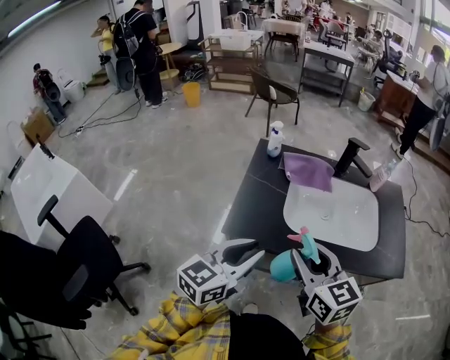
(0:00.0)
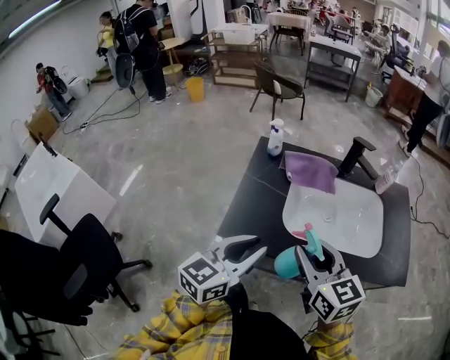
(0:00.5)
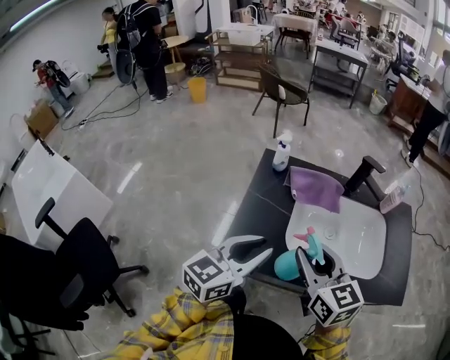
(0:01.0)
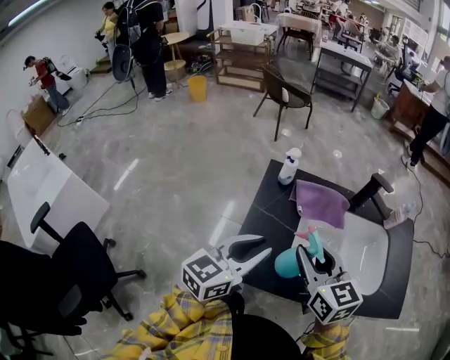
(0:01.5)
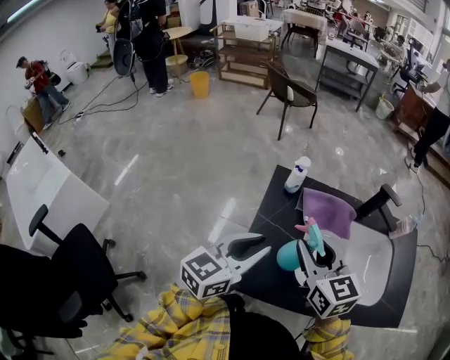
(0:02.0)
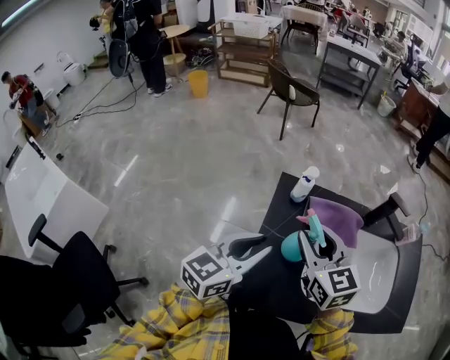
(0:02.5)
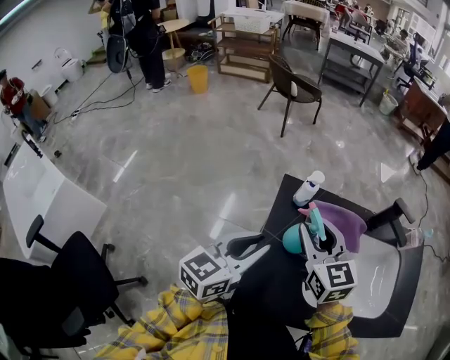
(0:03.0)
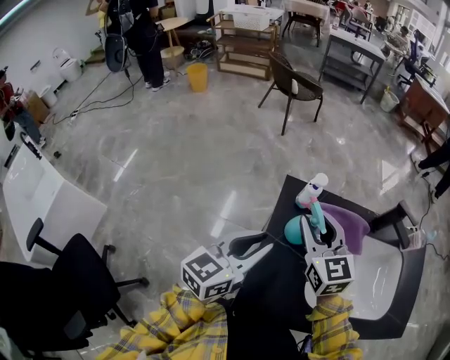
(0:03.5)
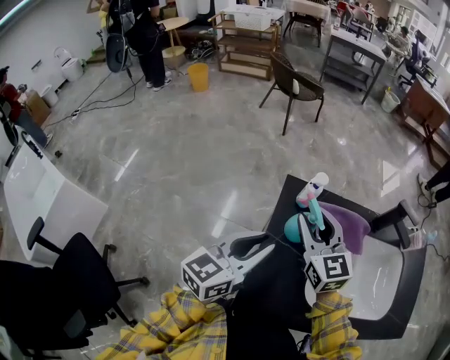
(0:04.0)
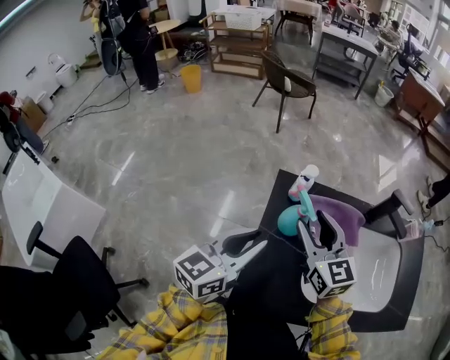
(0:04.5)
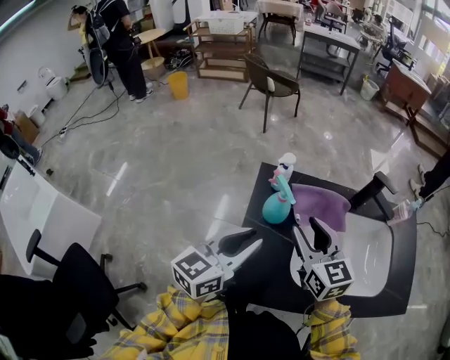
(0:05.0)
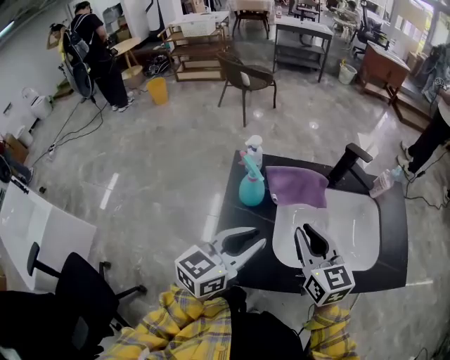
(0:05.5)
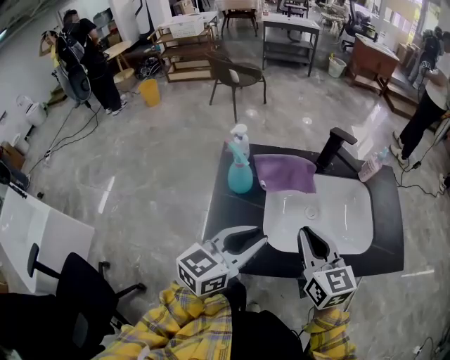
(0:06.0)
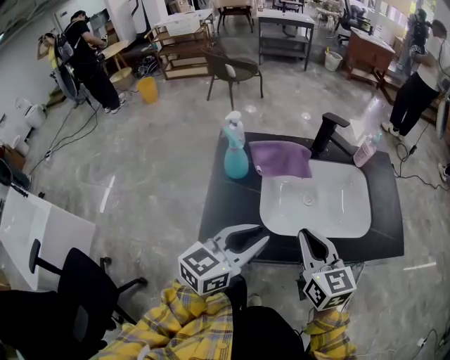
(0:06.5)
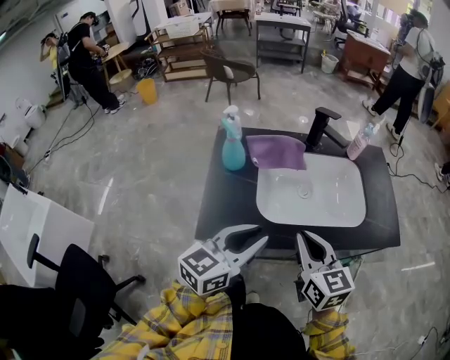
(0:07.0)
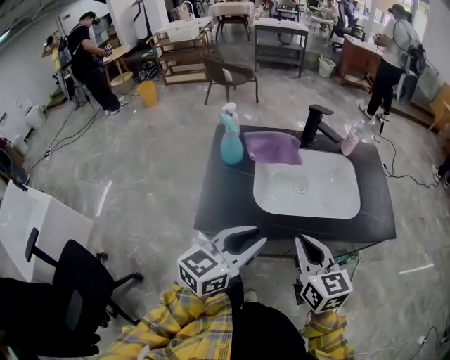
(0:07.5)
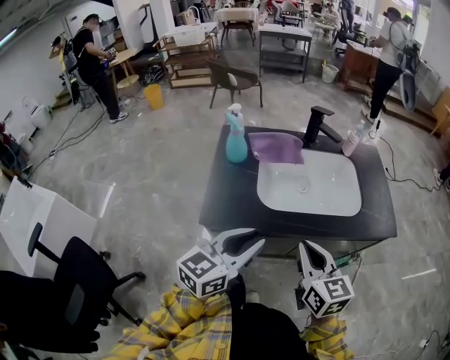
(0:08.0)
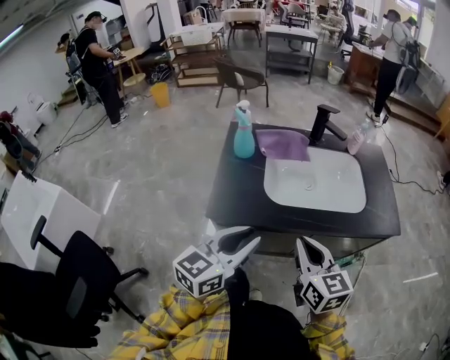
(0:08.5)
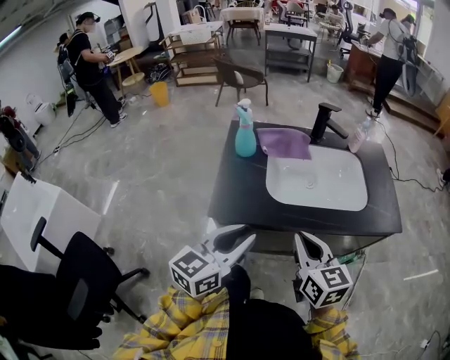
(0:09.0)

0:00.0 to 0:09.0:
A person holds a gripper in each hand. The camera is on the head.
0:00.0 to 0:02.0: The grippers both shift forward and to the left by about 25 cm.
0:02.0 to 0:04.5: The left gripper shifts roughly 10 cm forward and to the left; the right gripper travels forward by about 10 cm.
0:04.5 to 0:07.0: The left gripper heads to the right and backward, covering approximately 30 cm; the right gripper is displaced backward and to the right by roughly 35 cm, and closes up.
0:07.0 to 0:09.0: The grippers both shift backward by some 10 cm.

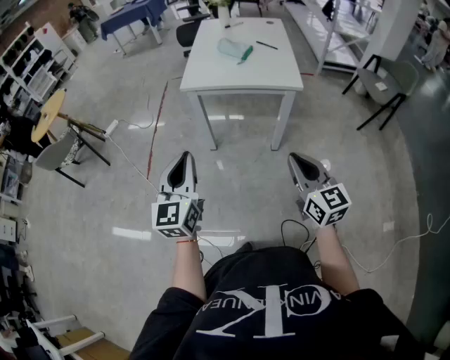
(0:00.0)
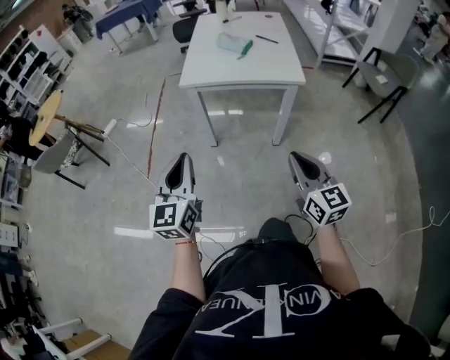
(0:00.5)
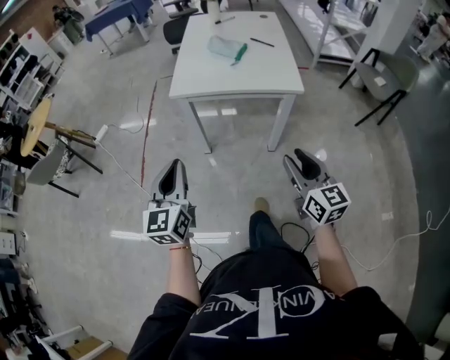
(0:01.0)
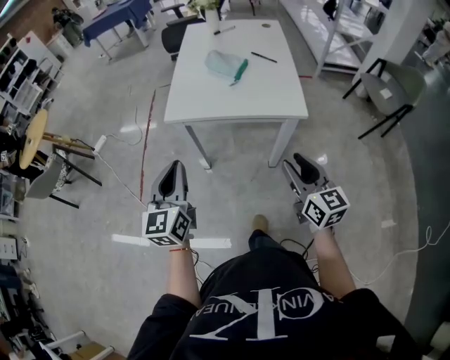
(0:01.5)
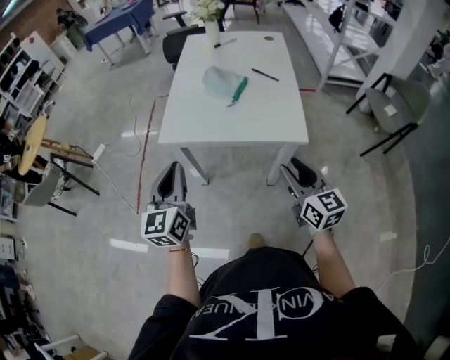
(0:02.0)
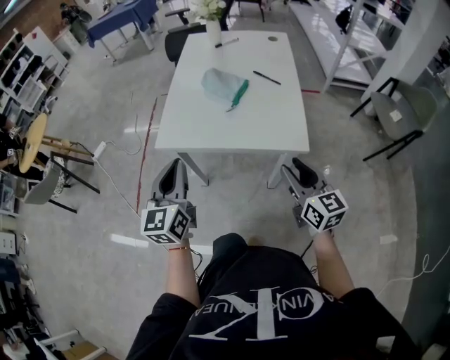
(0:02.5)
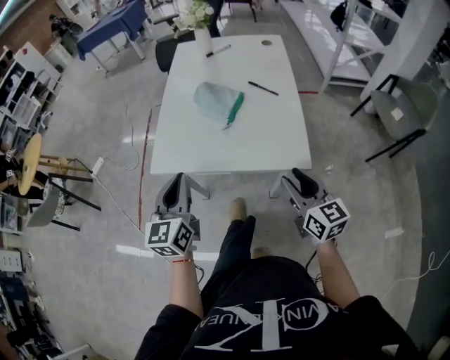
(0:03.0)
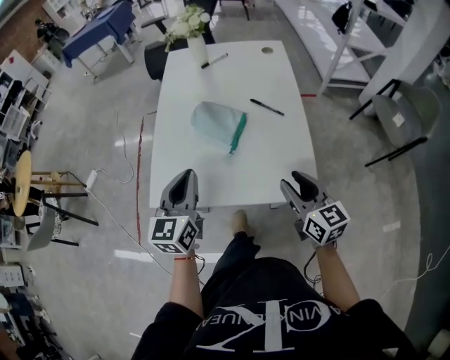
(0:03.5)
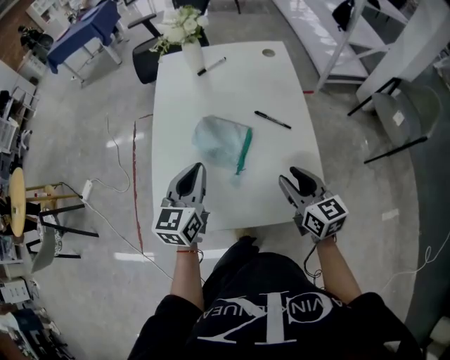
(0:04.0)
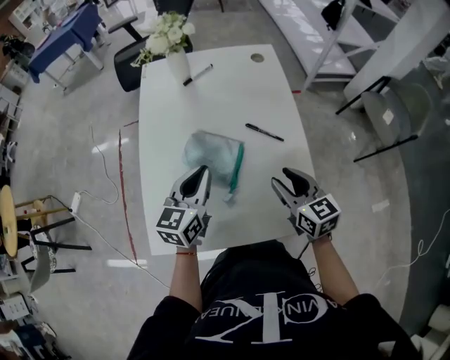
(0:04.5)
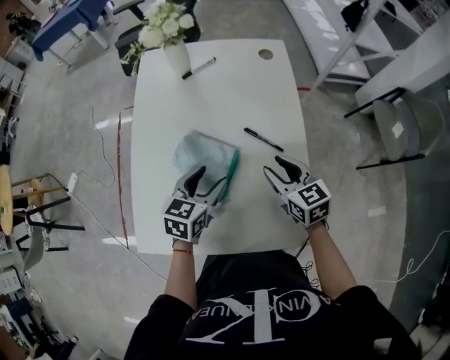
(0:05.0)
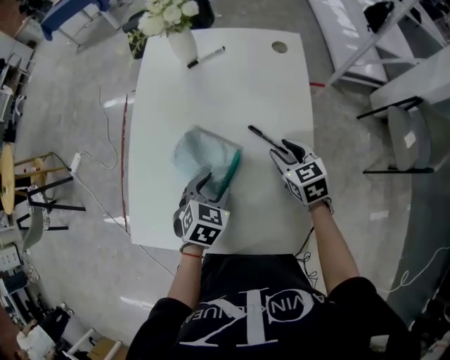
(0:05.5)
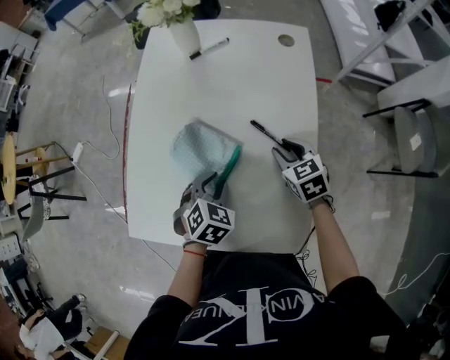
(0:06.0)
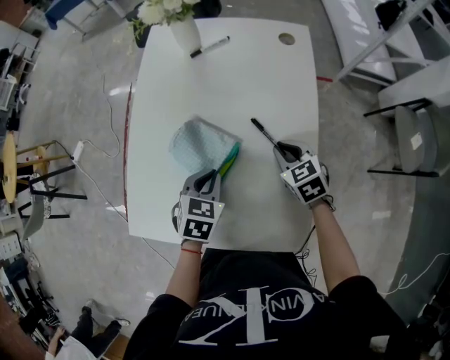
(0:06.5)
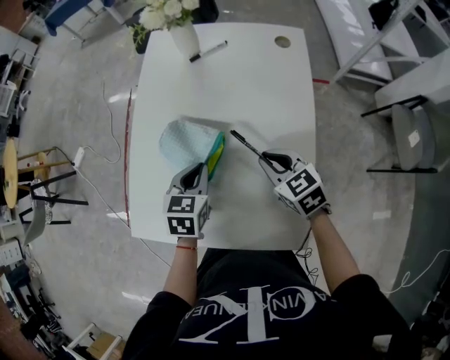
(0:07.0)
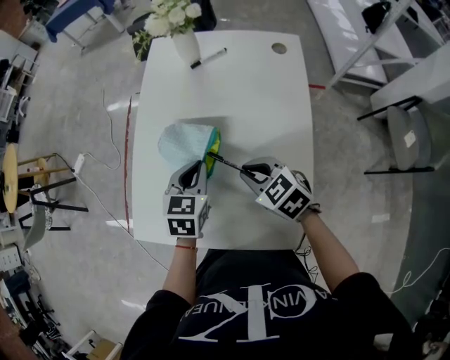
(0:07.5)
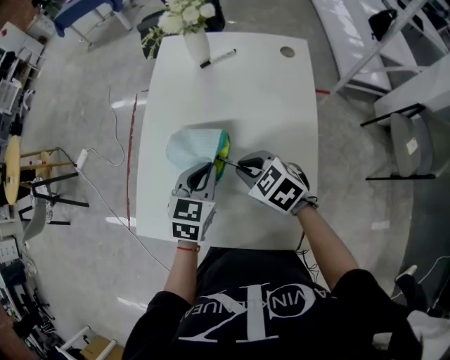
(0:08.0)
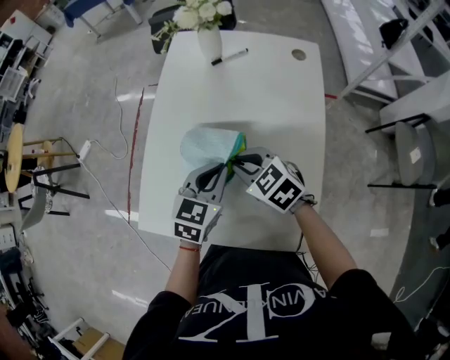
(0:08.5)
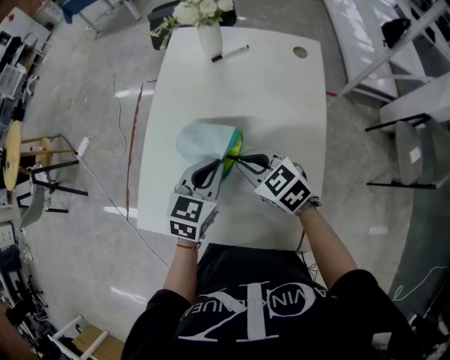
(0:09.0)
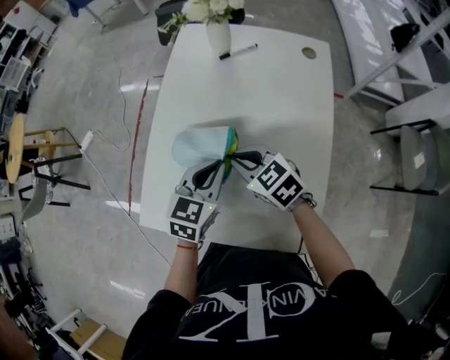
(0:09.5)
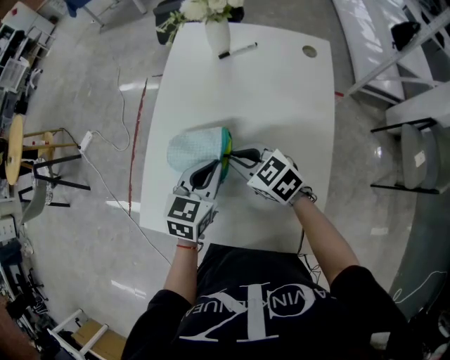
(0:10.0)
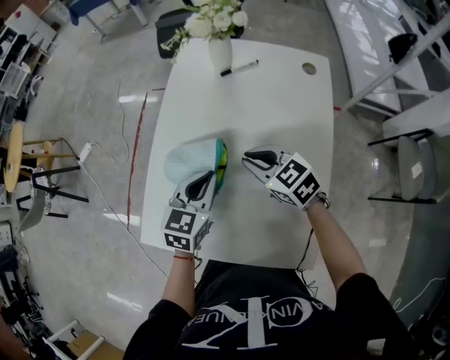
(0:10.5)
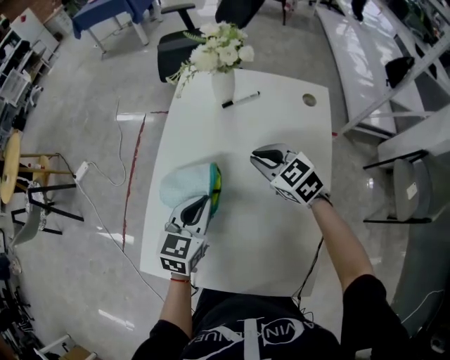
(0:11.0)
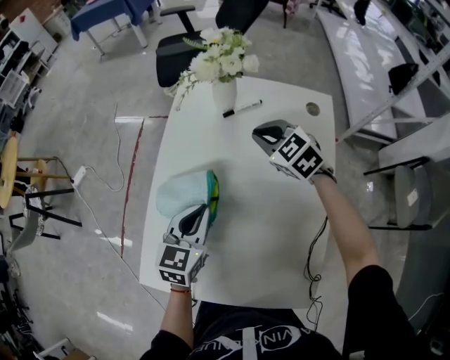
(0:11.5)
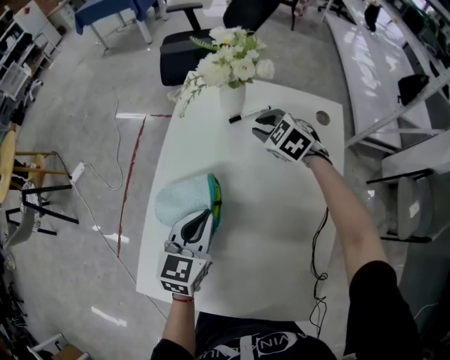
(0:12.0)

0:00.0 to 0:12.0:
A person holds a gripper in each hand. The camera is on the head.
0:00.0 to 0:02.0: Both grippers move forward, approximately 30 cm. The right gripper opens.
0:02.0 to 0:04.0: Both grippers move forward, approximately 30 cm. The left gripper swivels approximately 20 degrees.
0:04.0 to 0:06.0: The left gripper is displaced downward and to the right by roughly 20 cm, tips its fingers downward by about 50 degrees, and opens up; the right gripper goes approximately 20 cm forward and downward, and changes its angle by roughly 40 degrees.
0:06.0 to 0:08.0: The right gripper goes roughly 15 cm to the left and upward, swivels approximately 30 degrees, and closes. The left gripper is displaced upward by approximately 10 cm, turns by roughly 30 degrees, and closes up.
0:08.0 to 0:10.0: The right gripper changes place by approximately 5 cm.
0:10.0 to 0:12.0: The right gripper goes roughly 30 cm forward, and turns by about 30 degrees; the left gripper goes roughly 10 cm forward.

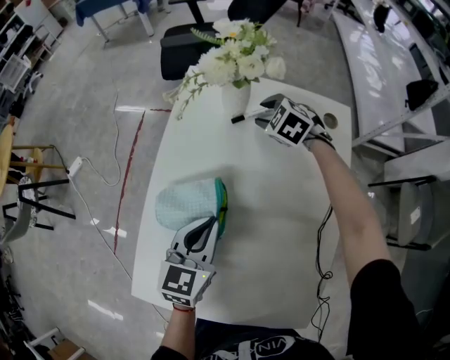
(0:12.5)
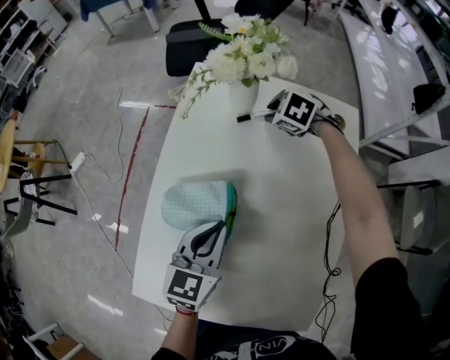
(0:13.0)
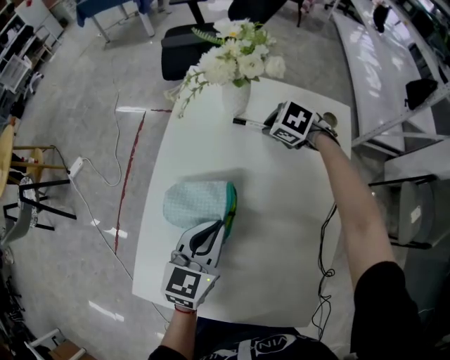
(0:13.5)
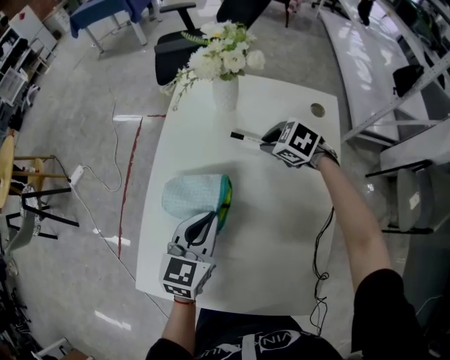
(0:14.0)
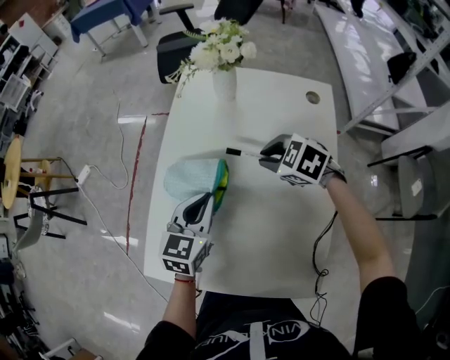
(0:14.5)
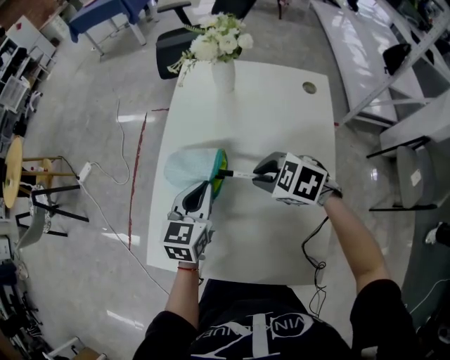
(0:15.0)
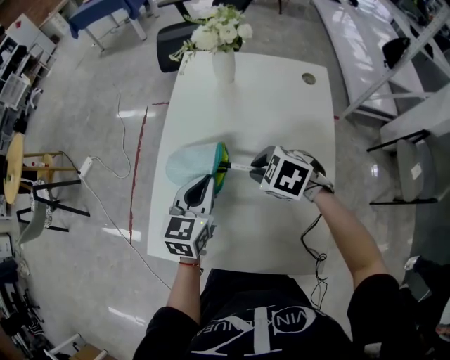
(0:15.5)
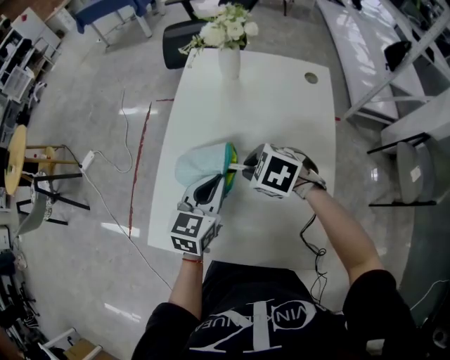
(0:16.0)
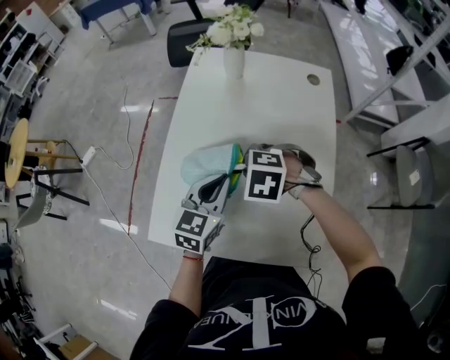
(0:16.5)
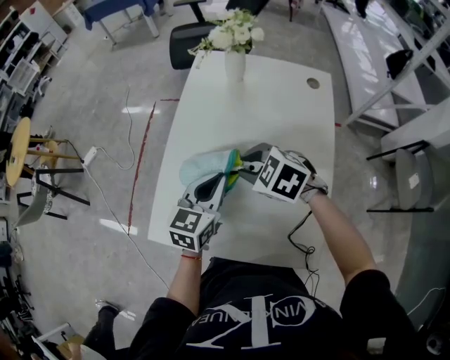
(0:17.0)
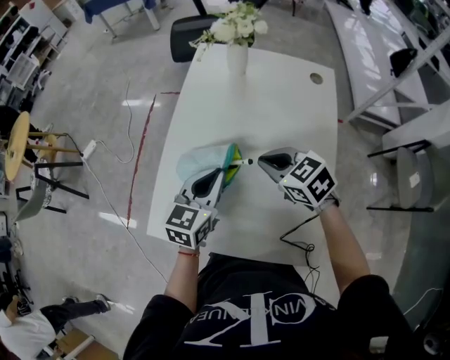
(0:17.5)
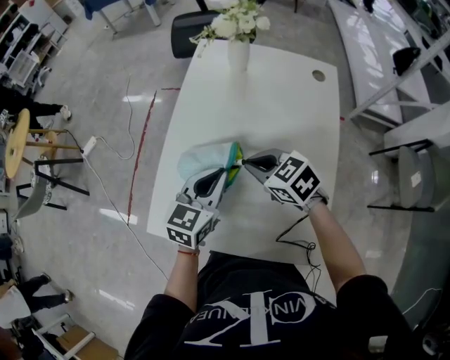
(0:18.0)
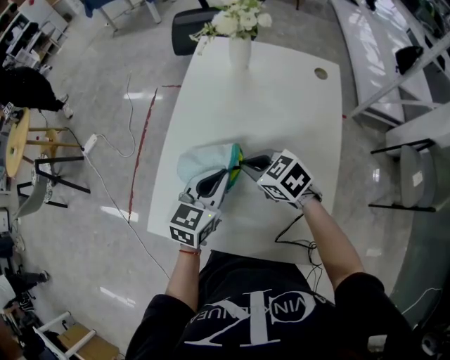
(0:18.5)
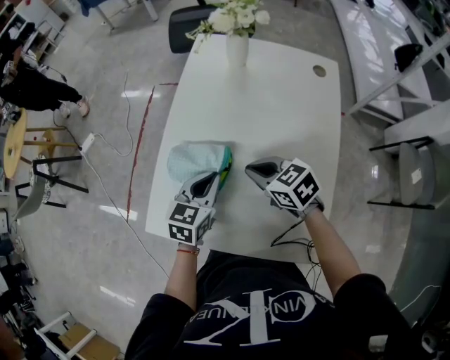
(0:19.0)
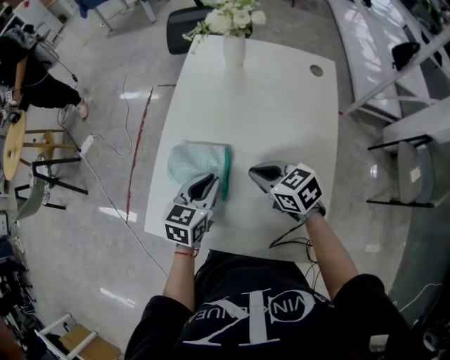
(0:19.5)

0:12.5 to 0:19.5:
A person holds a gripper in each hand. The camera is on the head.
0:12.5 to 0:14.5: The right gripper travels backward by some 25 cm, and closes up.
0:14.5 to 0:16.0: The left gripper shifts some 5 cm backward. Meanwhile the right gripper moves to the left and backward, about 15 cm.
0:16.0 to 0:17.5: The right gripper swivels about 30 degrees.
0:17.5 to 0:19.5: The right gripper shifts by some 5 cm; the left gripper heads downward, covering some 5 cm.
